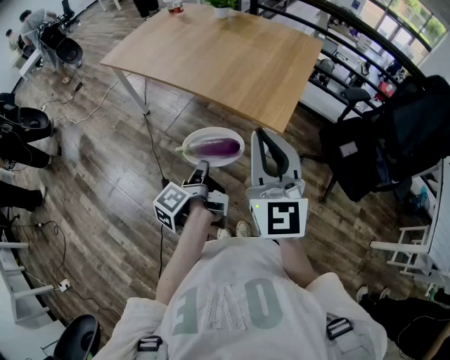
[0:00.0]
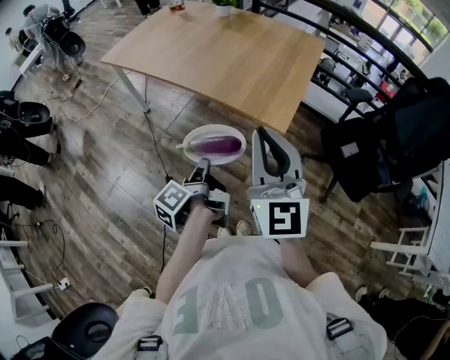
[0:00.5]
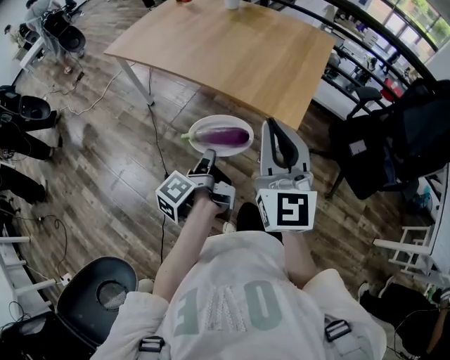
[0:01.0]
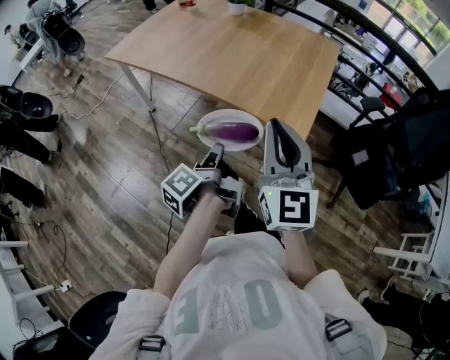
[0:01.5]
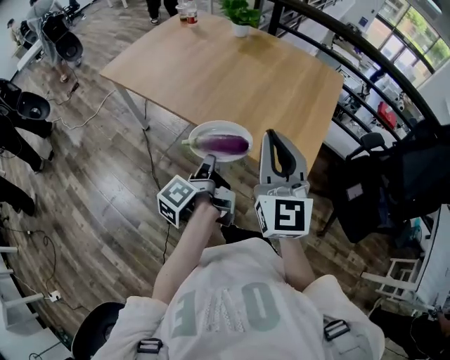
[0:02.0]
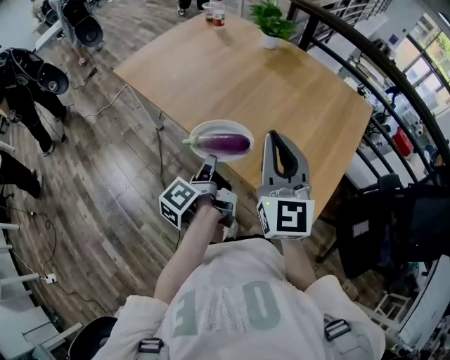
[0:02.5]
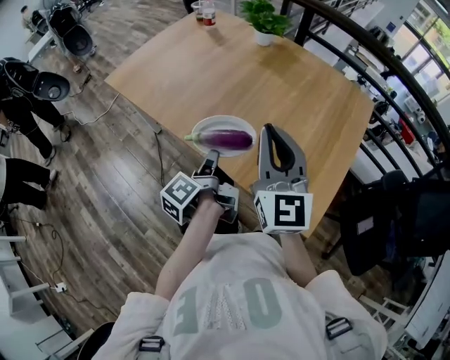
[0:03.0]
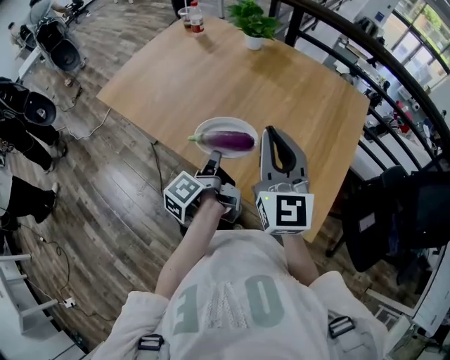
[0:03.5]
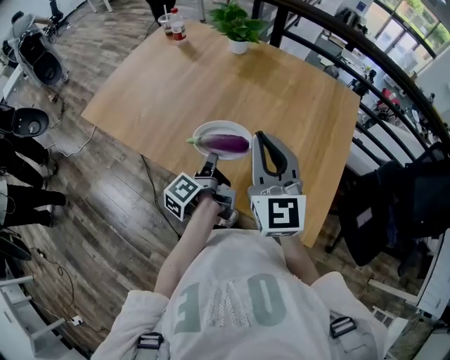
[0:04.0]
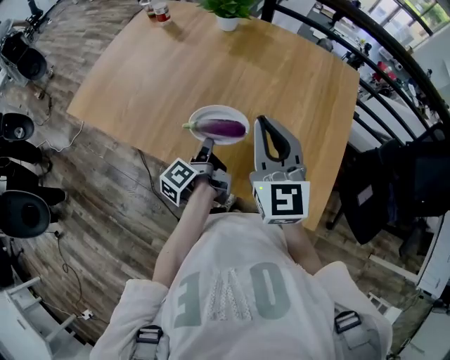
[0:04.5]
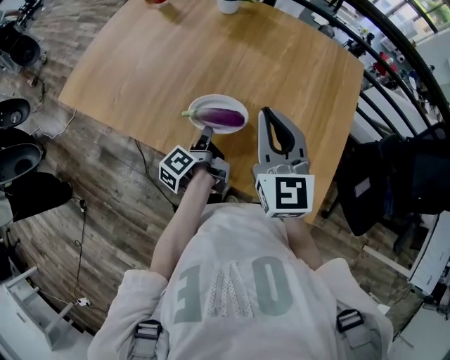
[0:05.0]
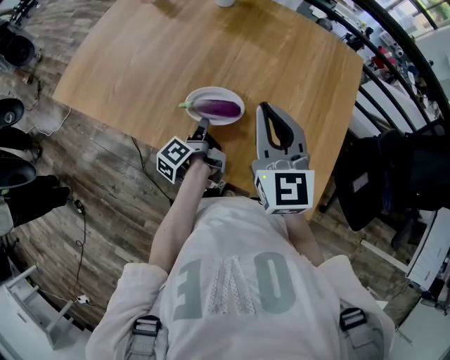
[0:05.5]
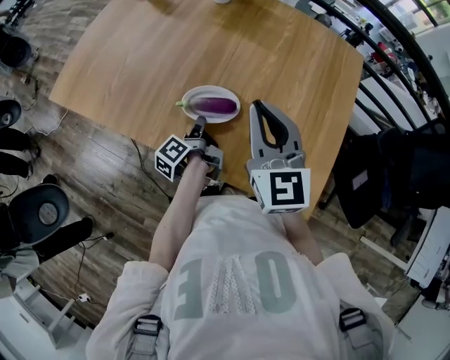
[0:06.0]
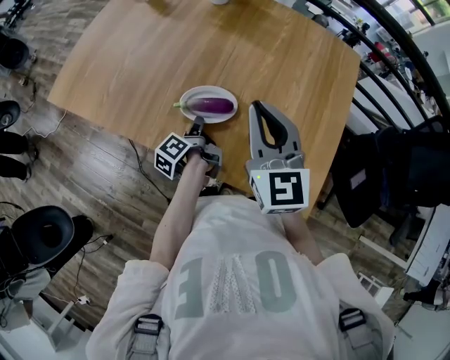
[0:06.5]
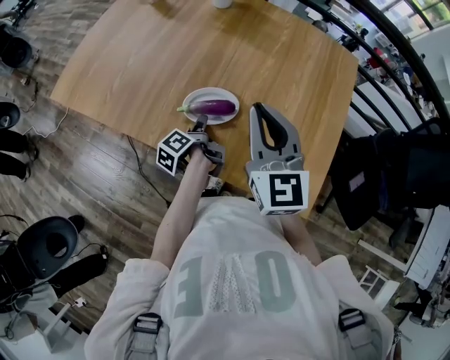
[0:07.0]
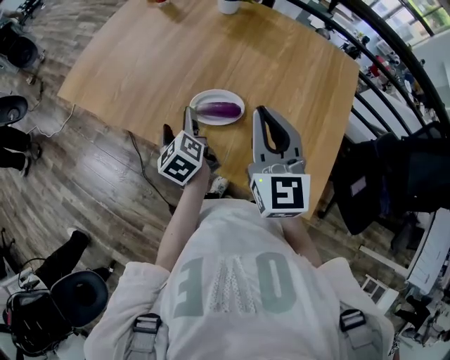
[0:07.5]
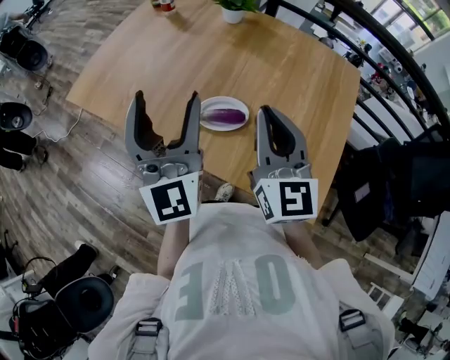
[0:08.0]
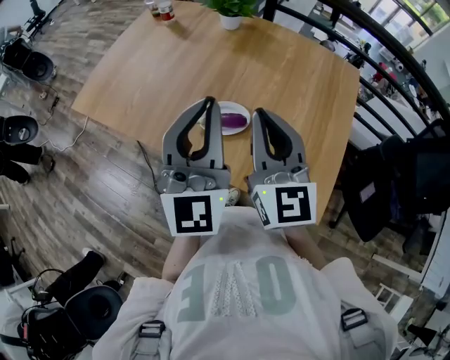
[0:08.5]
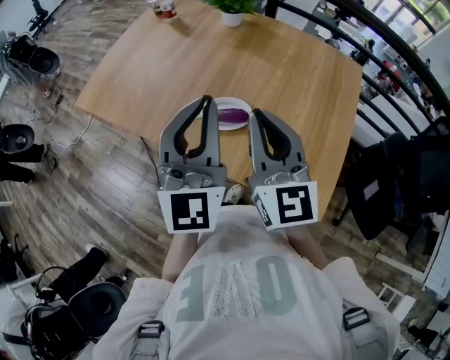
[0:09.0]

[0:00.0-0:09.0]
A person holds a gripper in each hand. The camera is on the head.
0:00.0 to 0:02.0: The right gripper ends up about 20 cm from where it was.
0:02.0 to 0:04.5: The right gripper ends up approximately 25 cm from where it was.
0:07.0 to 0:09.0: The right gripper heads upward, covering about 5 cm.

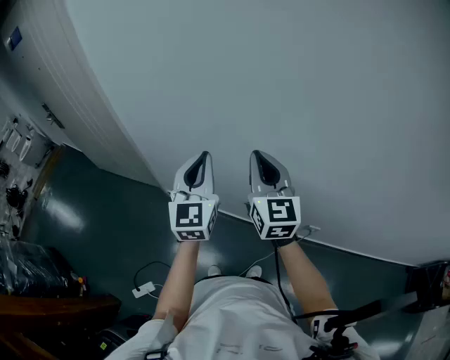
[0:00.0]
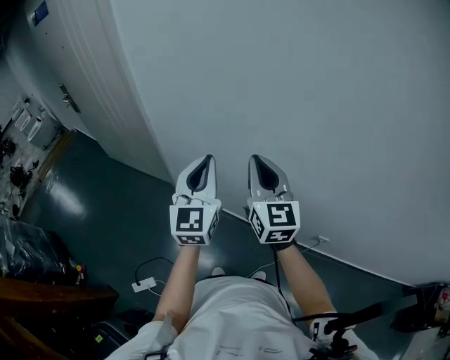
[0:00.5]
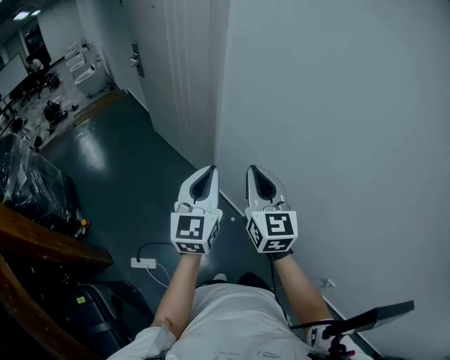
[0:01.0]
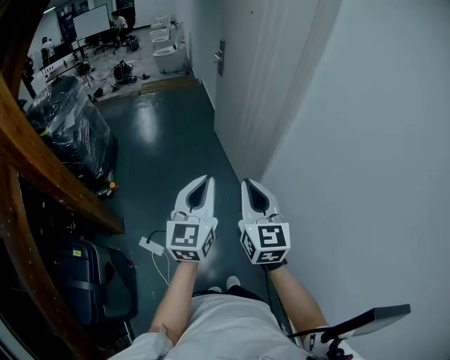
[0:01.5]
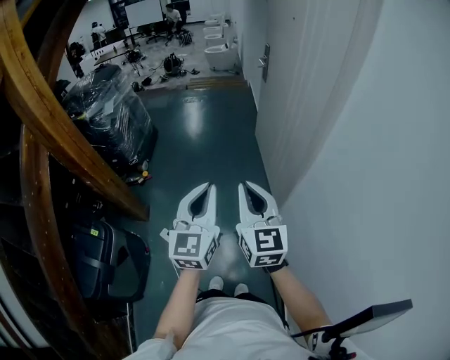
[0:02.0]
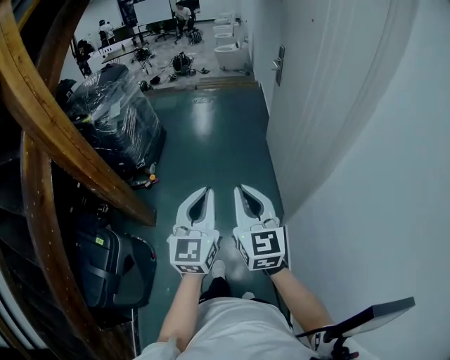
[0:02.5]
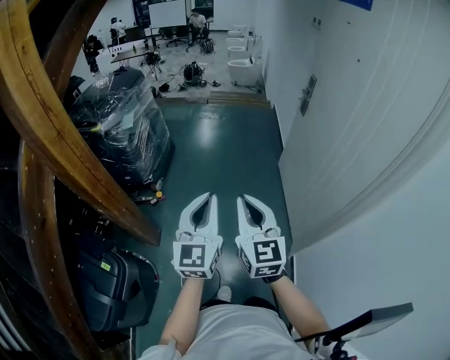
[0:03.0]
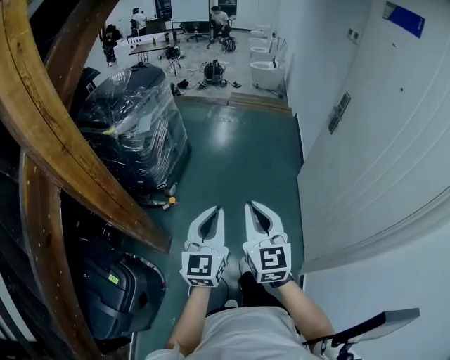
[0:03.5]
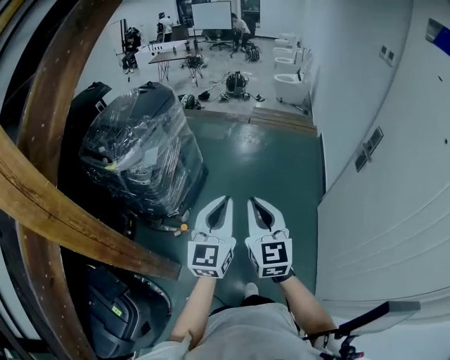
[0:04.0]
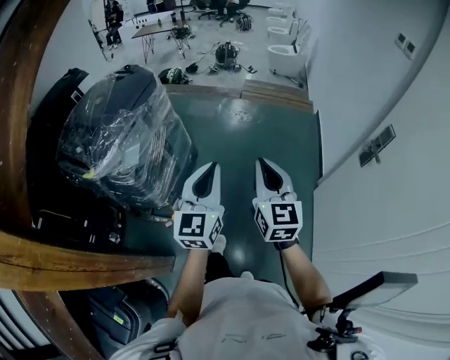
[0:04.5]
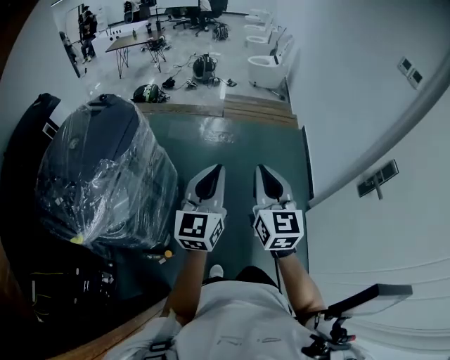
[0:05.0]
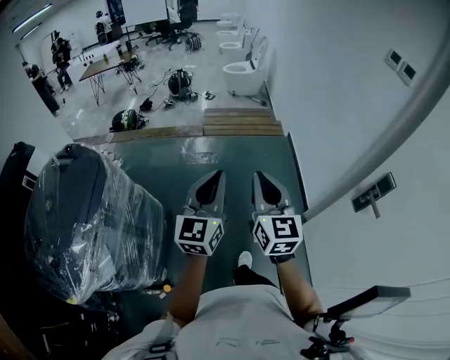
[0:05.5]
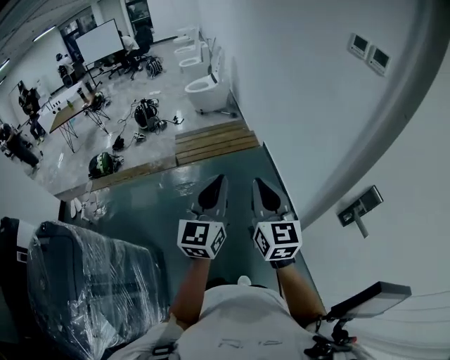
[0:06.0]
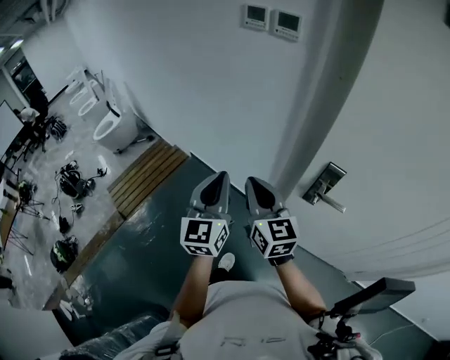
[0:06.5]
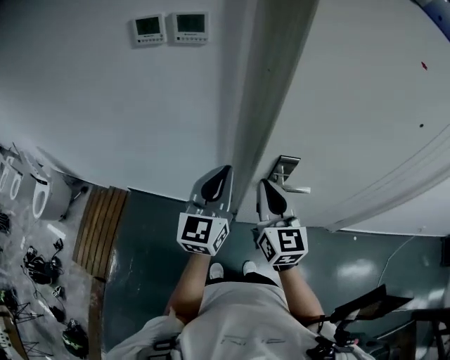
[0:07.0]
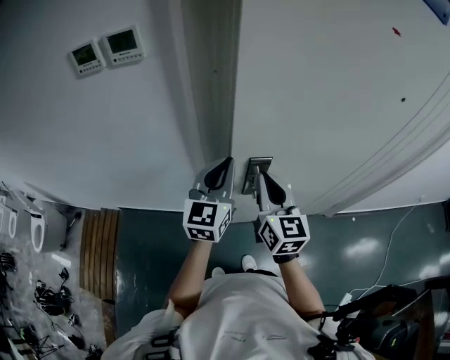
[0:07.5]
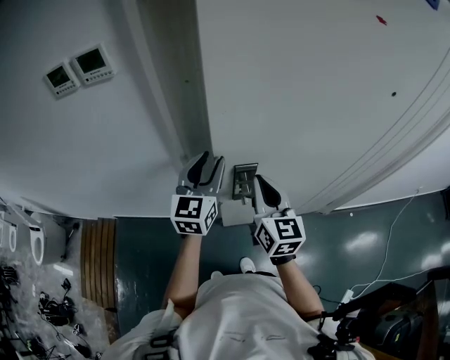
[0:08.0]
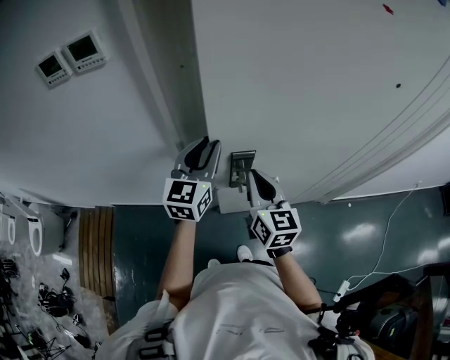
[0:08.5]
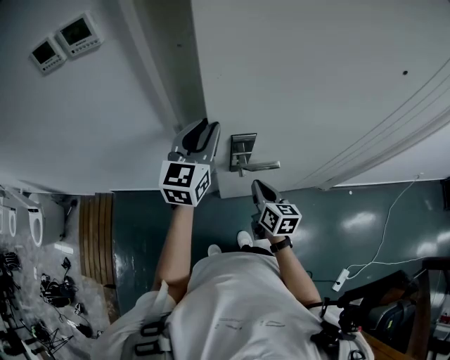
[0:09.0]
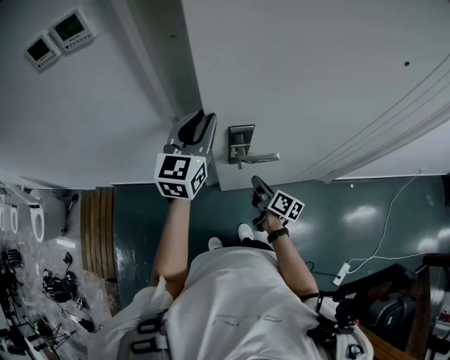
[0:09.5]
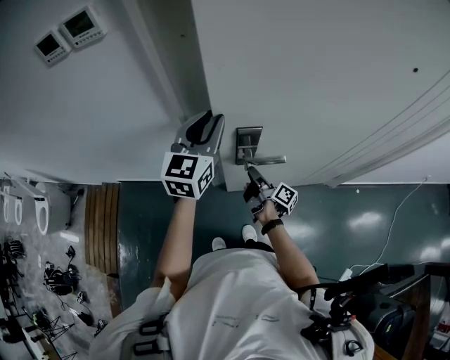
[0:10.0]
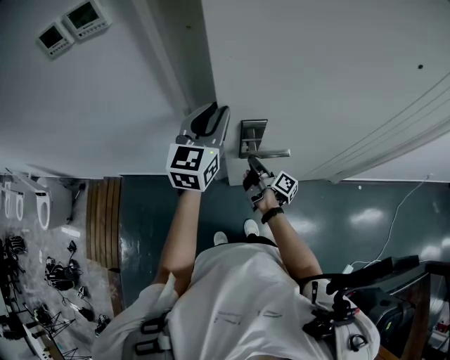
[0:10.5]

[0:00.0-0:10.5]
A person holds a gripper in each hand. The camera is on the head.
0:00.0 to 0:02.0: Both grippers are carried some 50 cm. The right gripper changes its angle by about 70 degrees; the left gripper changes its angle by approximately 60 degrees.
0:02.0 to 0:04.0: The pair of grippers is taken forward, approximately 60 cm.
0:04.0 to 0:06.5: The two grippers travel together, roughly 80 cm. The left gripper swivels approximately 60 degrees. Meanwhile the right gripper swivels about 60 degrees.
0:06.5 to 0:08.5: The right gripper shifts by approximately 30 cm, and swivels approximately 50 degrees. The left gripper moves approximately 35 cm, changes its angle by roughly 50 degrees, and opens up.
0:08.5 to 0:10.5: The right gripper heads downward, covering about 25 cm, rolls clockwise, seen from behind, by about 80 degrees, and opens, then closes once more.

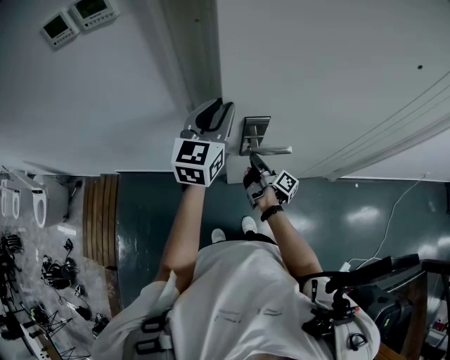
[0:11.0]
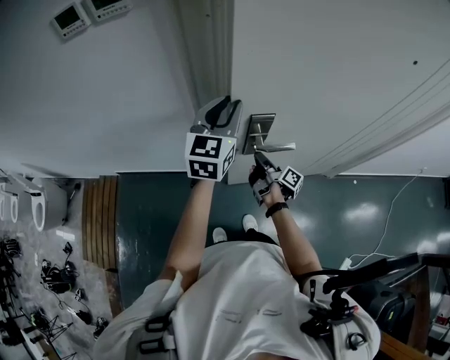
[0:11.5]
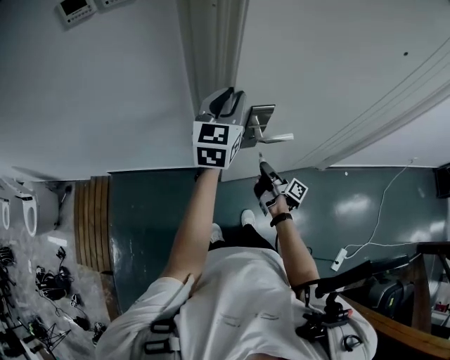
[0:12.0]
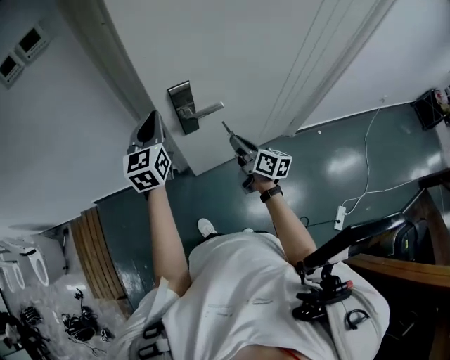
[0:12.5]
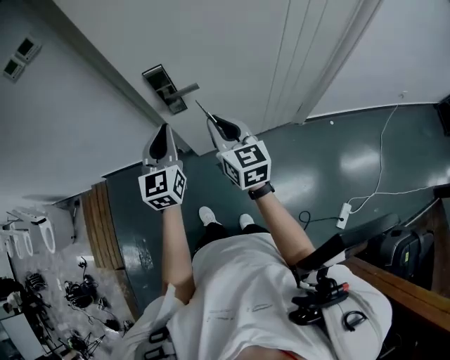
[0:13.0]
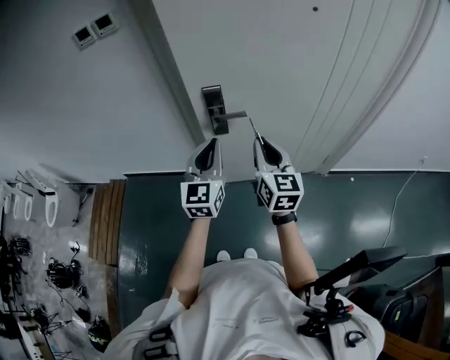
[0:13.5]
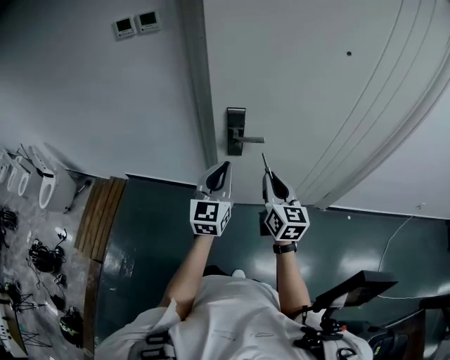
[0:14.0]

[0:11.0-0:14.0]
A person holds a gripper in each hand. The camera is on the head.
0:11.0 to 0:12.5: The right gripper goes approximately 20 cm backward, to the right and upward, and rolls counterclockwise, seen from behind, by roughly 40 degrees. The left gripper goes roughly 10 cm backward, and closes up.
0:12.5 to 0:14.0: The right gripper travels upward and backward by about 15 cm, and turns by some 30 degrees, while the left gripper shifts some 20 cm backward and to the right.

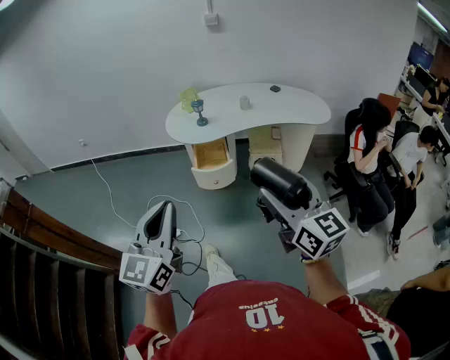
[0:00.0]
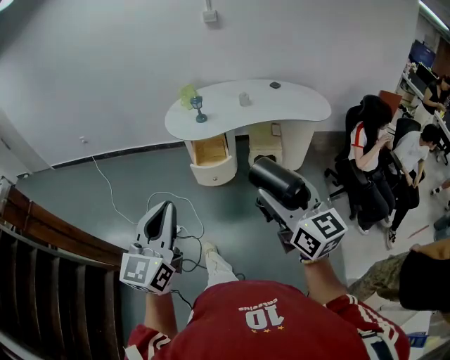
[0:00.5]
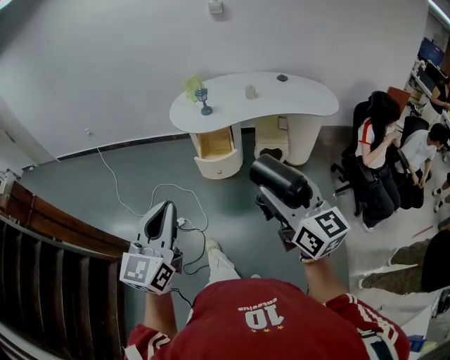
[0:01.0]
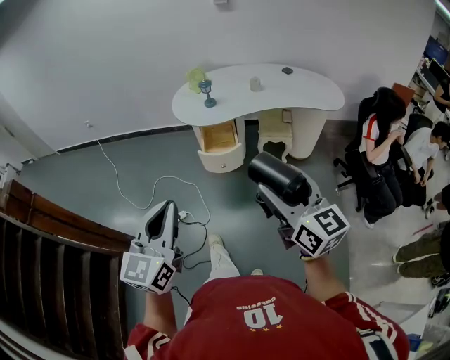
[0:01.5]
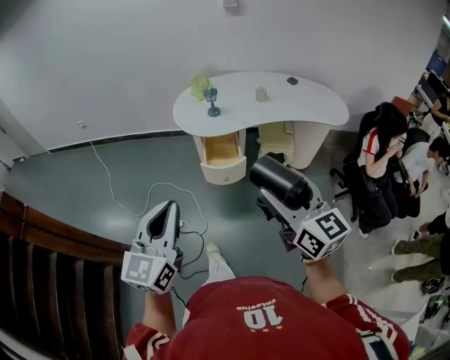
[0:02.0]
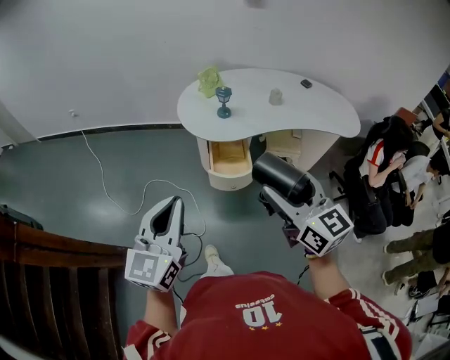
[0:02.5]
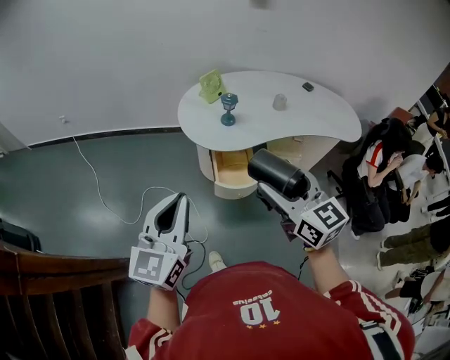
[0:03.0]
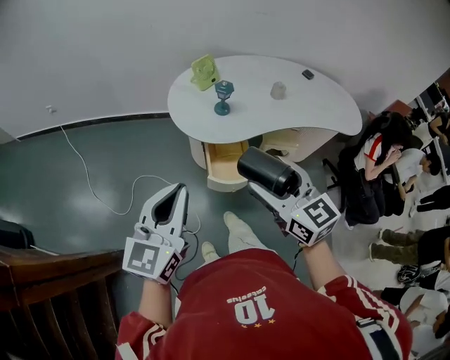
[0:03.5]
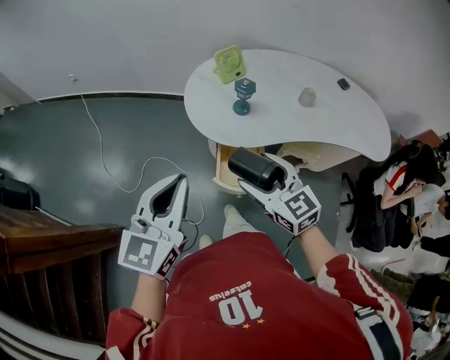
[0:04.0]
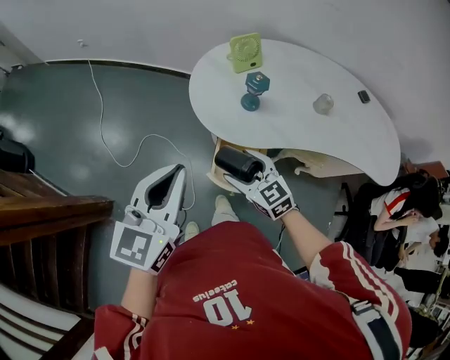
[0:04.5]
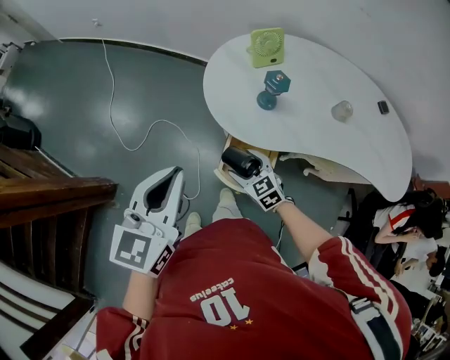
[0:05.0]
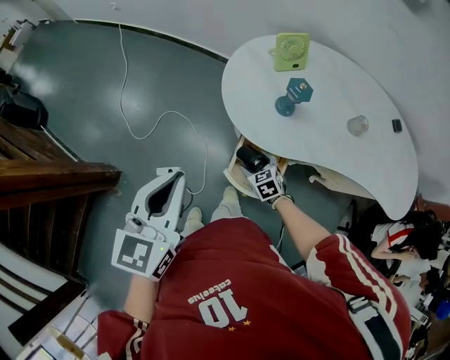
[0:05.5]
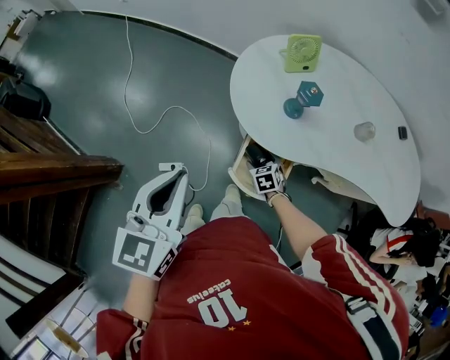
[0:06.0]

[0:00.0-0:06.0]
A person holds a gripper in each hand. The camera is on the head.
0:00.0 to 0:02.0: The left gripper is displaced forward by approximately 10 cm. Meanwhile the right gripper shifts some 10 cm forward and to the left.
0:02.0 to 0:04.0: The left gripper goes some 35 cm forward. The right gripper goes about 40 cm forward and downward, and changes its angle by approximately 30 degrees.
0:04.0 to 0:06.0: The right gripper travels downward by roughly 40 cm, and tips its fingers downward by roughly 40 degrees, while the left gripper travels downward and forward by about 10 cm, and swivels approximately 20 degrees.
